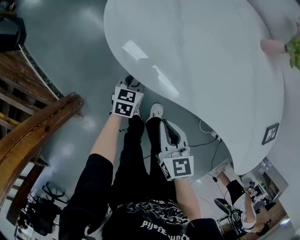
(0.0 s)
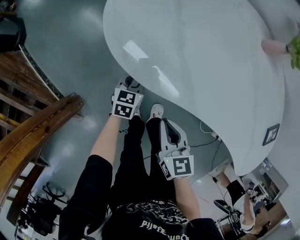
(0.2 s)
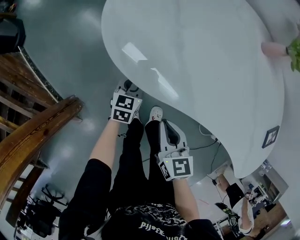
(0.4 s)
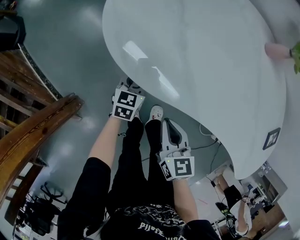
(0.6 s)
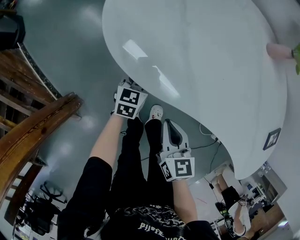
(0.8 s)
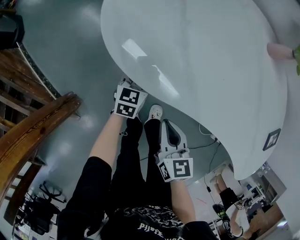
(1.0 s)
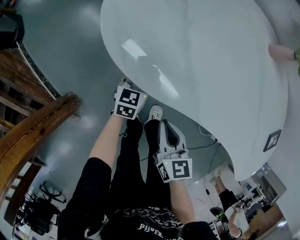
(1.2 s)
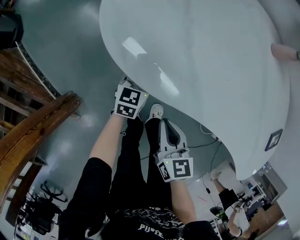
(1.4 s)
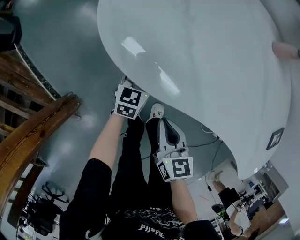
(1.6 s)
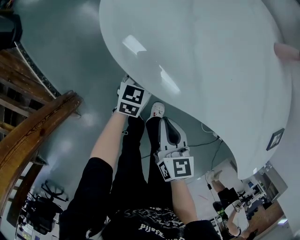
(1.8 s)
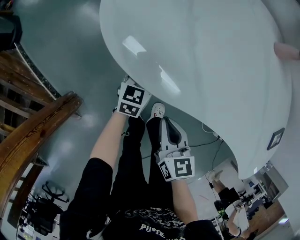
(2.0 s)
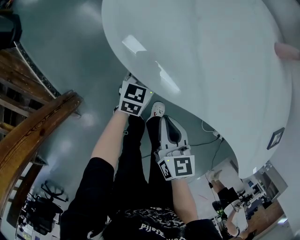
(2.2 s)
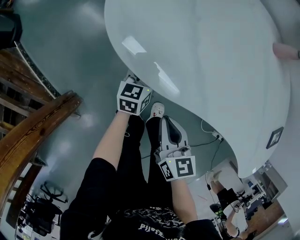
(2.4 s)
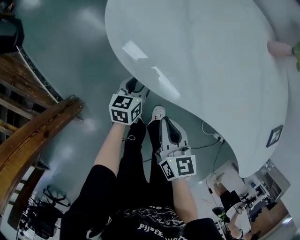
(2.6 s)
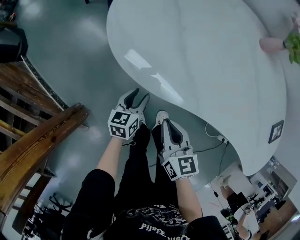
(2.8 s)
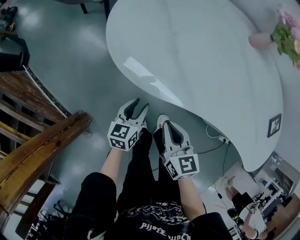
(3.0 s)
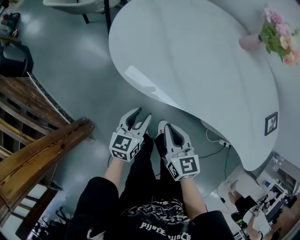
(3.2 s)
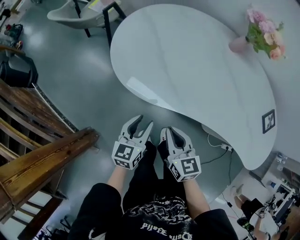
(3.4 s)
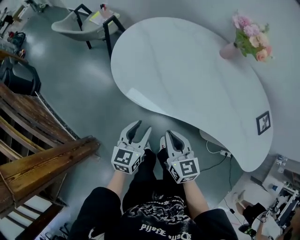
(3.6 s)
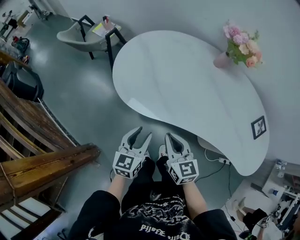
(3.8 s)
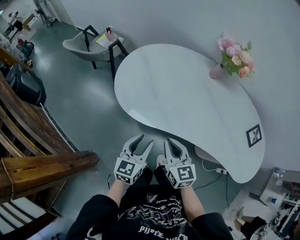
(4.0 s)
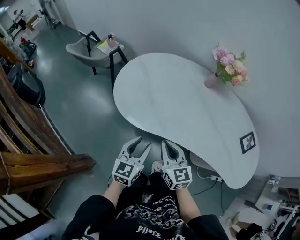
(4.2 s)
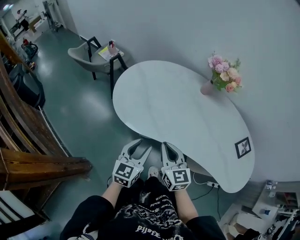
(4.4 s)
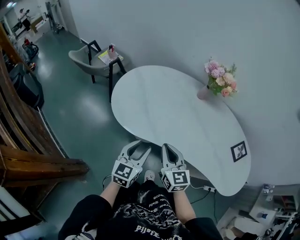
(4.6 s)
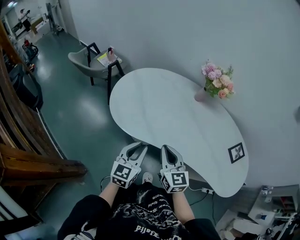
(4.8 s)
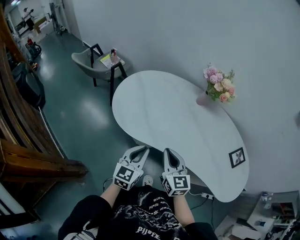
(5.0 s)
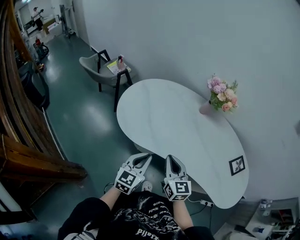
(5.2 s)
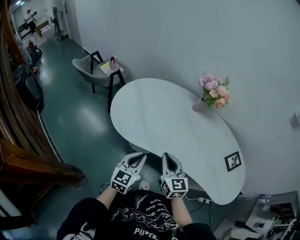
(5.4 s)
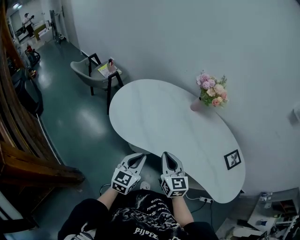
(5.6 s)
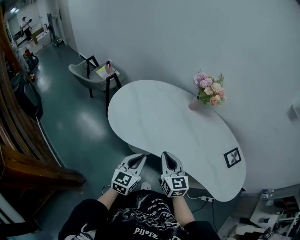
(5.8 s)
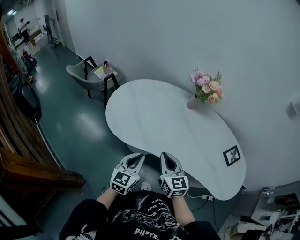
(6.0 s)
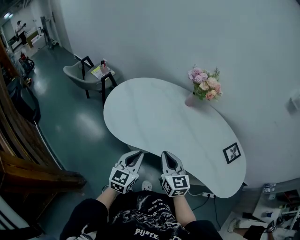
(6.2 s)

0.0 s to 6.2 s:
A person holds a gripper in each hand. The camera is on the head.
0.0 to 1.6 s: The right gripper moves downward, approximately 5 cm.
1.6 to 3.2 s: The right gripper travels upward by some 10 cm; the left gripper moves upward and backward, about 20 cm.
3.2 to 4.6 s: Both grippers move upward and to the right, about 25 cm.
4.6 to 6.2 s: The left gripper closes. The right gripper moves to the right, some 5 cm.

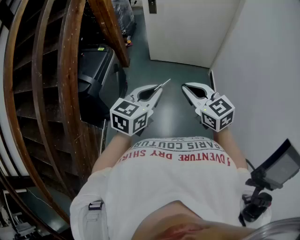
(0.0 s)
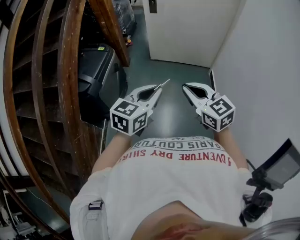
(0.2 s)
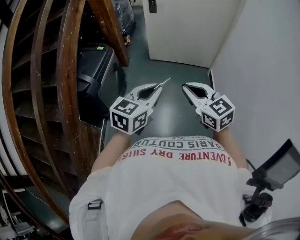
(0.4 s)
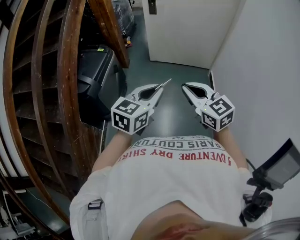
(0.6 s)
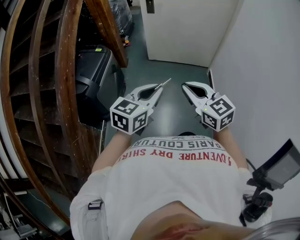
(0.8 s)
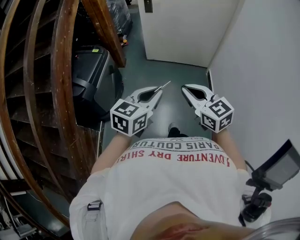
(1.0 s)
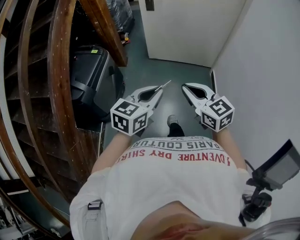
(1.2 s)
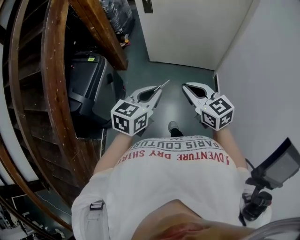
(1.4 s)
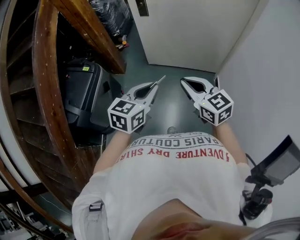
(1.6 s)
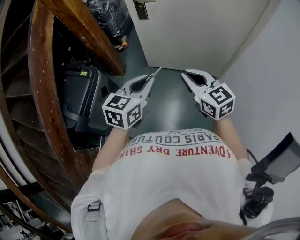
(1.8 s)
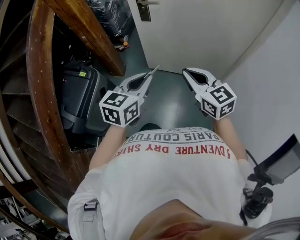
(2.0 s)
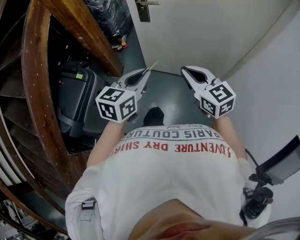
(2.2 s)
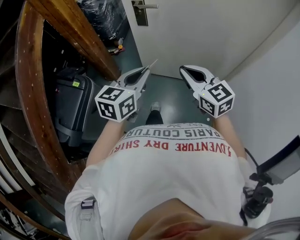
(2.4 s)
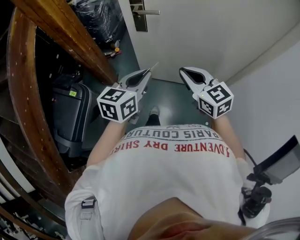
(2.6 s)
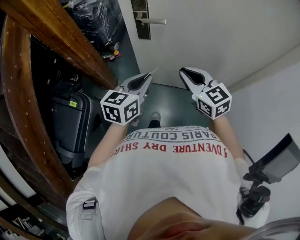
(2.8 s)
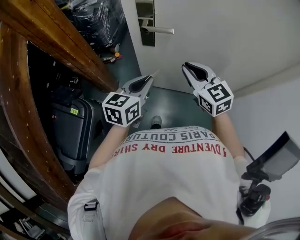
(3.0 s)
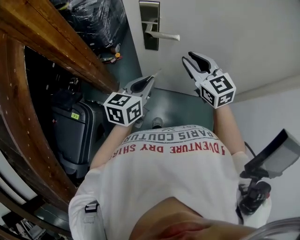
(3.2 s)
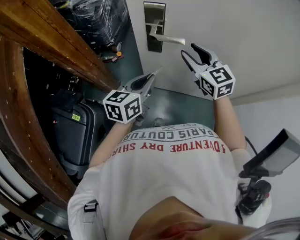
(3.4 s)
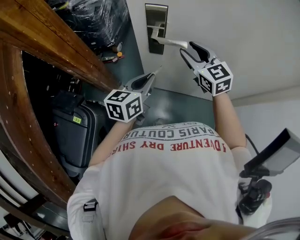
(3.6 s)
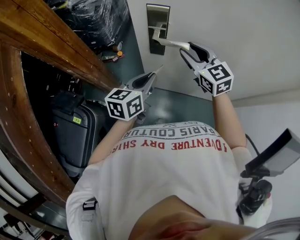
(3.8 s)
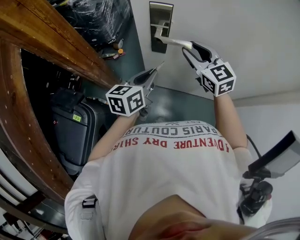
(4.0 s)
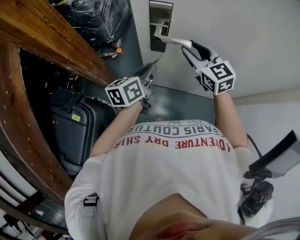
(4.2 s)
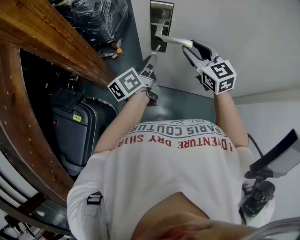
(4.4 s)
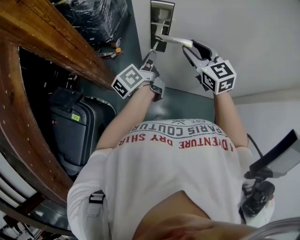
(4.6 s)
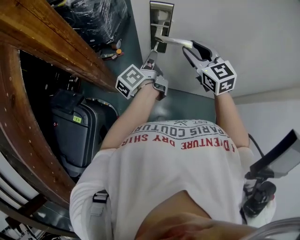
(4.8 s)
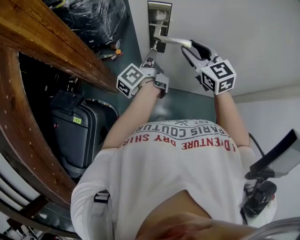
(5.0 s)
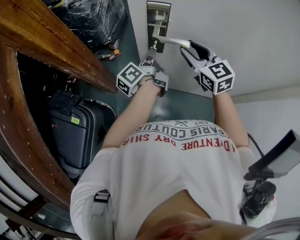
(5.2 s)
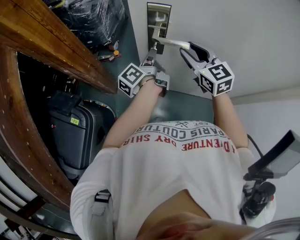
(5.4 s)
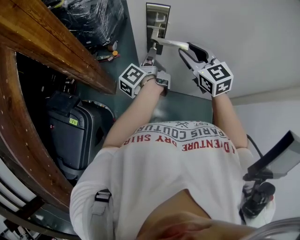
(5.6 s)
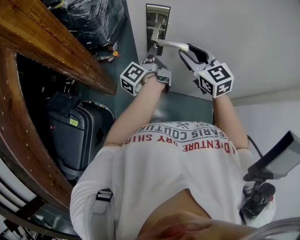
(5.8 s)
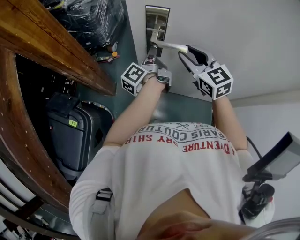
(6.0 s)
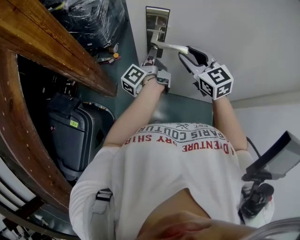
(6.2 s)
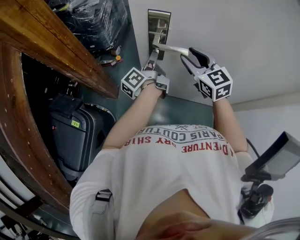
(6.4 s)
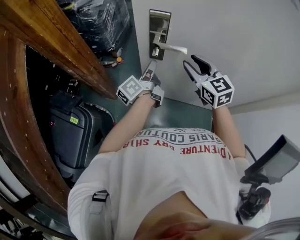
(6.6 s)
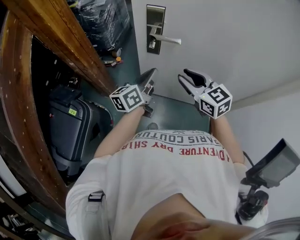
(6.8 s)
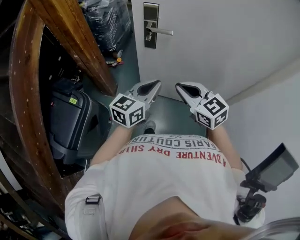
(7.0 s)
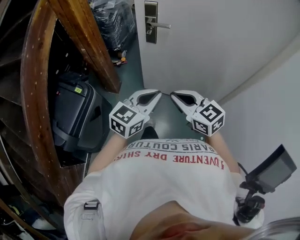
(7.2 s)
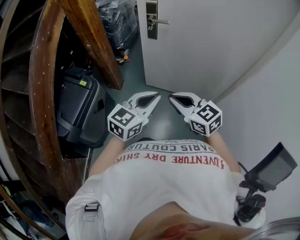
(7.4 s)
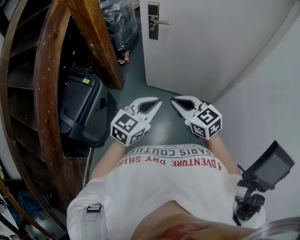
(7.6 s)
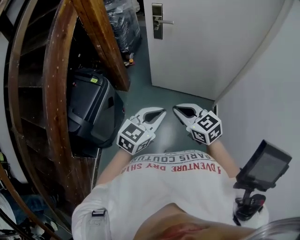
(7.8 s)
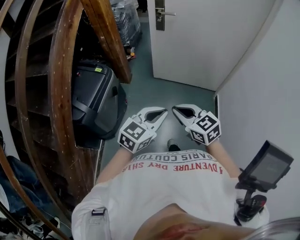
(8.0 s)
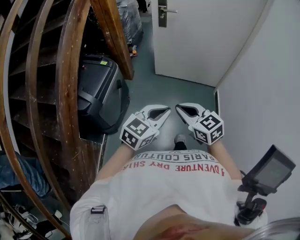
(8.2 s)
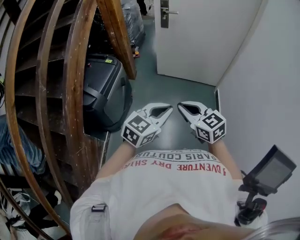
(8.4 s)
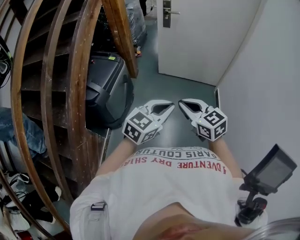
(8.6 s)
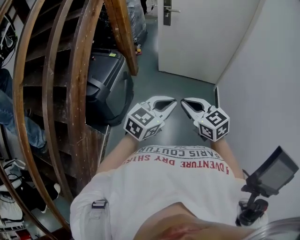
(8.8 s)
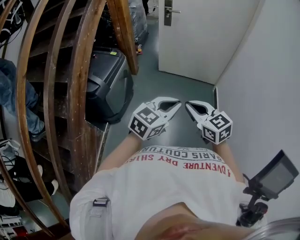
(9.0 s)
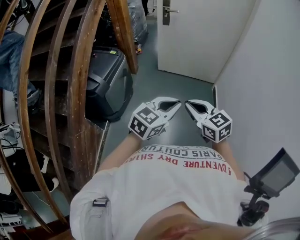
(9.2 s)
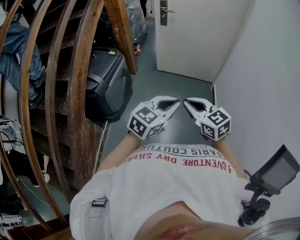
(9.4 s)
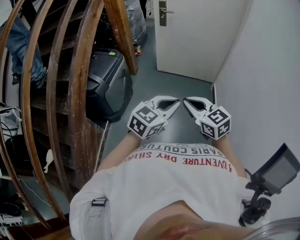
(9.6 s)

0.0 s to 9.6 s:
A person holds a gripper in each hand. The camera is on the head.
0.0 to 1.6 s: The two grippers go roughly 30 cm forward.
1.6 to 3.2 s: Both grippers are carried forward, roughly 50 cm.
3.2 to 4.8 s: The left gripper is displaced forward by approximately 15 cm, and rotates around the line of its fingers by roughly 50 degrees, counterclockwise from behind; the right gripper goes roughly 10 cm forward.
4.8 to 6.4 s: The grippers make only small movements.
6.4 to 8.0 s: Both grippers are carried backward, roughly 70 cm. The right gripper closes, while the left gripper rolls clockwise, seen from behind, by some 80 degrees.
8.0 to 9.6 s: The two grippers go approximately 30 cm backward.

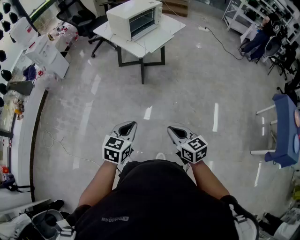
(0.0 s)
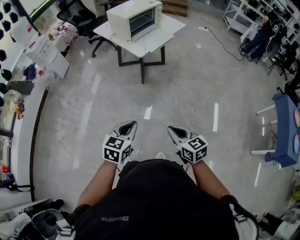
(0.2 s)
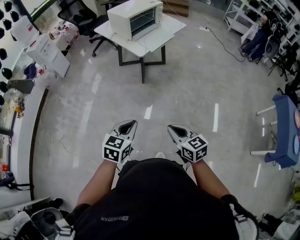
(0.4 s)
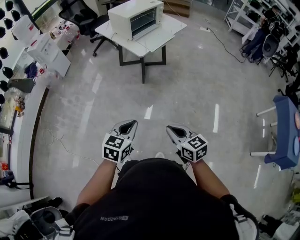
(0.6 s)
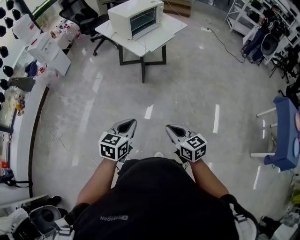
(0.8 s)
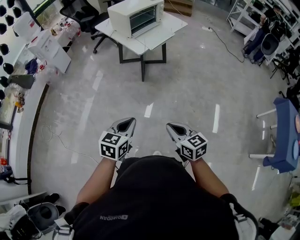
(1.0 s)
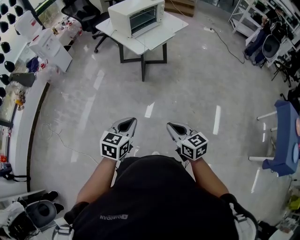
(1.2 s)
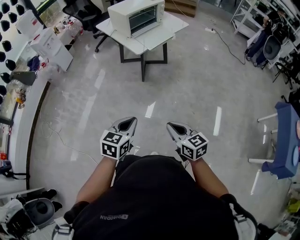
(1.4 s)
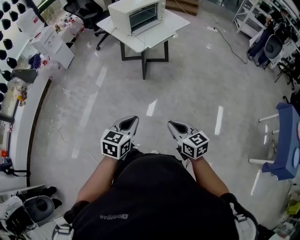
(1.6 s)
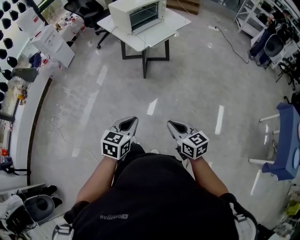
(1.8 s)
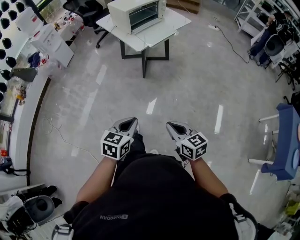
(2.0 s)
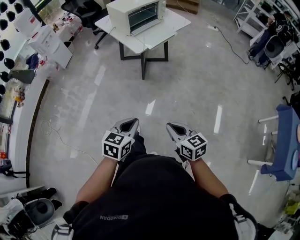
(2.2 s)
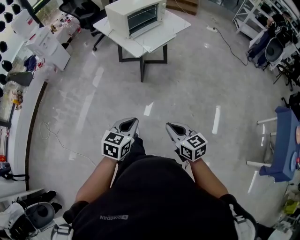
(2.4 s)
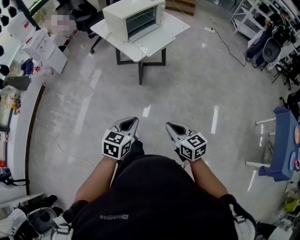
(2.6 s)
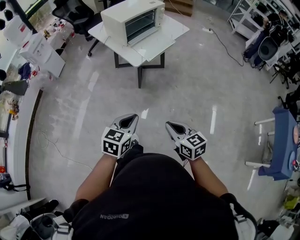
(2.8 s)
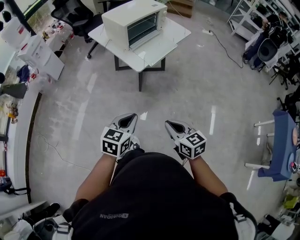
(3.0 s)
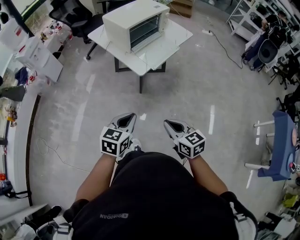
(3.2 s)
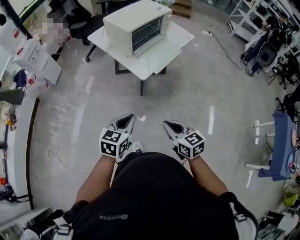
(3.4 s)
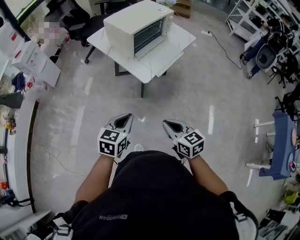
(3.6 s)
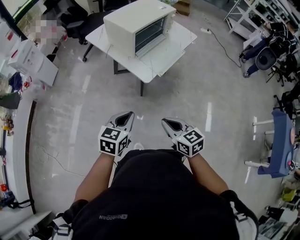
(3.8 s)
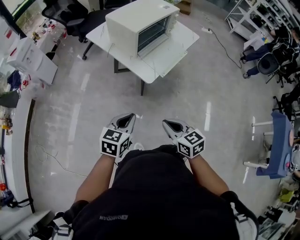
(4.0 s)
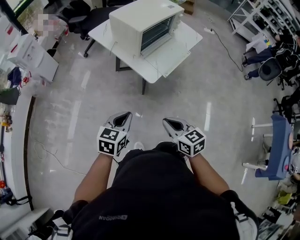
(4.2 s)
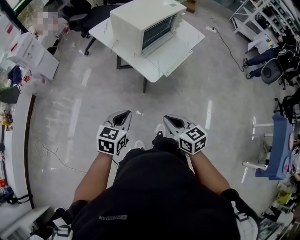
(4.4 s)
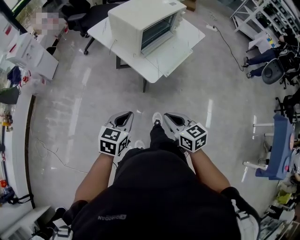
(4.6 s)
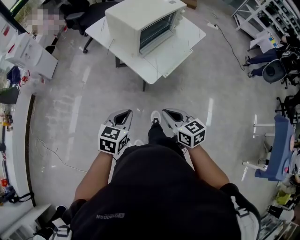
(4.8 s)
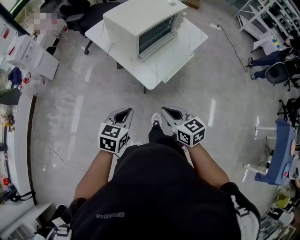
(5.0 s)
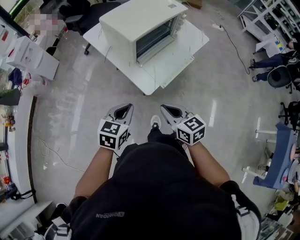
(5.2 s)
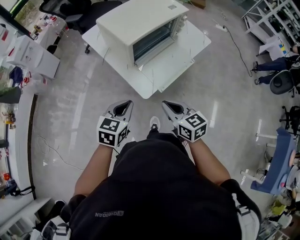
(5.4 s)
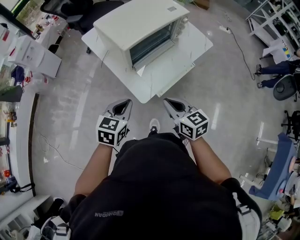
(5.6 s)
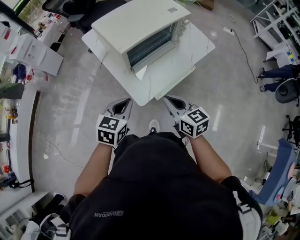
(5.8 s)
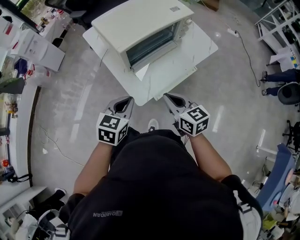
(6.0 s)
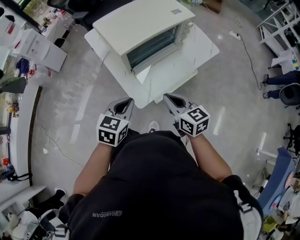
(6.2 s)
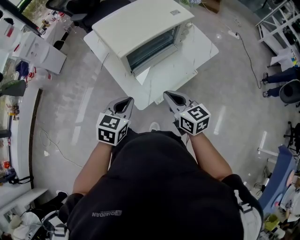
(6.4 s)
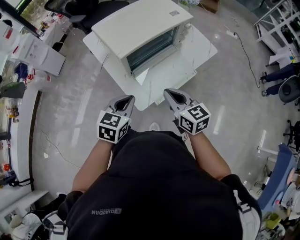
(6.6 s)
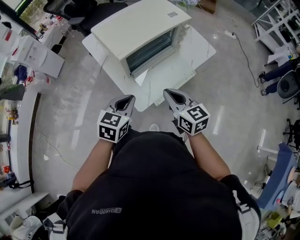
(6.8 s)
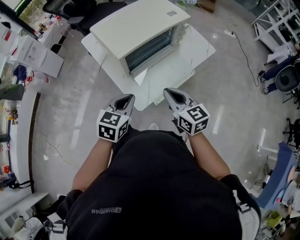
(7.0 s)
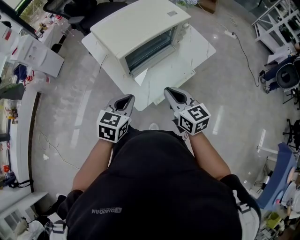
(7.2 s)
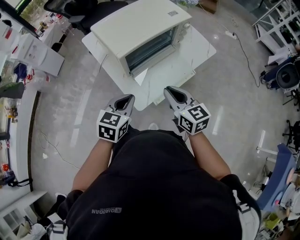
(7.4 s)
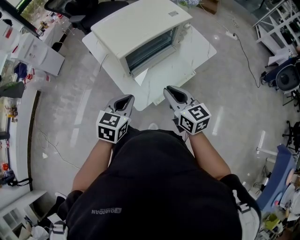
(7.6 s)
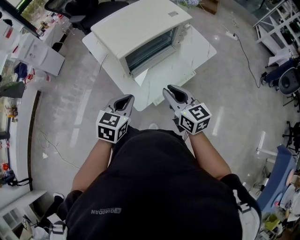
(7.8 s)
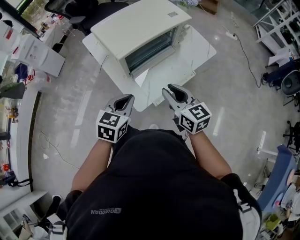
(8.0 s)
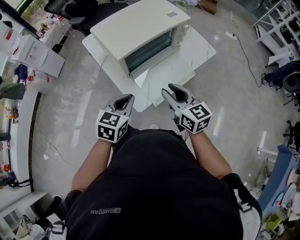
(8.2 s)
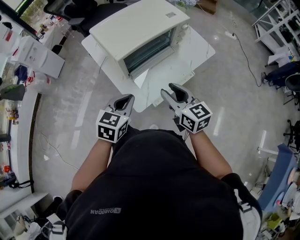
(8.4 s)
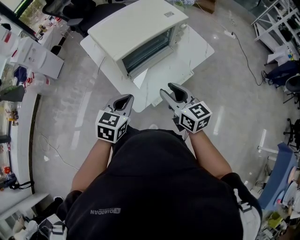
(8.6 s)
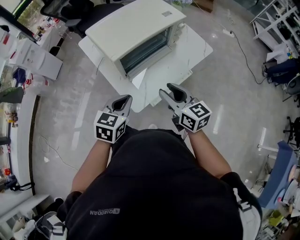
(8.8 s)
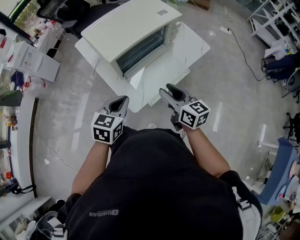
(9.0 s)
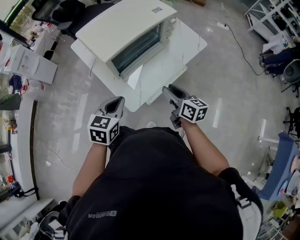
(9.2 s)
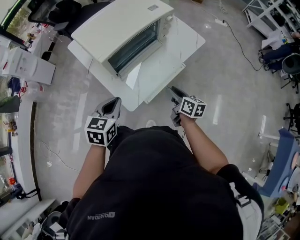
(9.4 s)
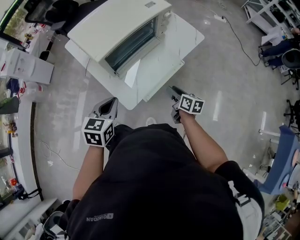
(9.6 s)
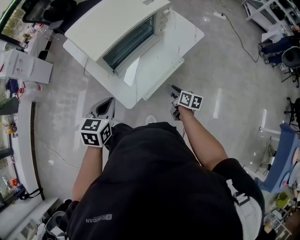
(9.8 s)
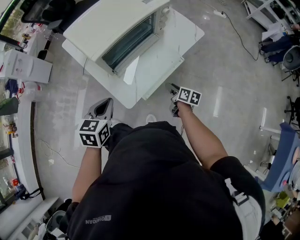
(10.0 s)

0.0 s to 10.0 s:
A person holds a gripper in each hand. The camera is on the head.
0.0 to 1.4 s: Both grippers travel together to the right, some 5 cm.
1.4 to 2.8 s: Both grippers travel together forward, approximately 15 cm.
2.8 to 4.2 s: Both grippers travel together forward and to the left, roughly 25 cm.
4.2 to 5.8 s: Both grippers travel together forward and to the right, some 30 cm.
5.8 to 7.2 s: The right gripper moves forward, about 5 cm.
7.2 to 8.6 s: The right gripper opens.
8.6 to 10.0 s: The right gripper is displaced downward and to the right by about 30 cm, and rolls clockwise, seen from behind, by roughly 40 degrees.
